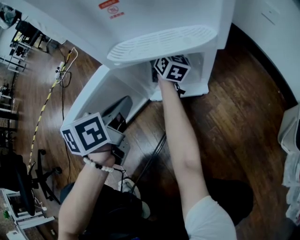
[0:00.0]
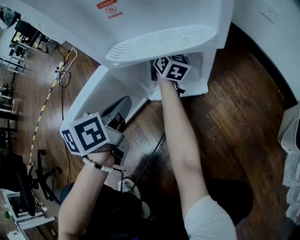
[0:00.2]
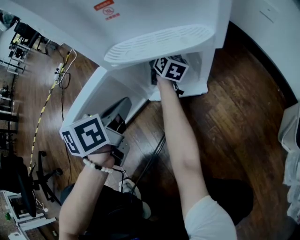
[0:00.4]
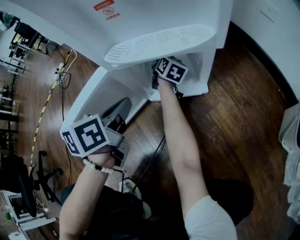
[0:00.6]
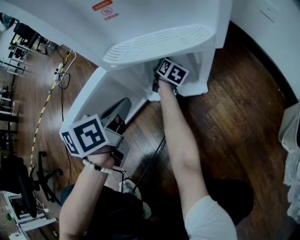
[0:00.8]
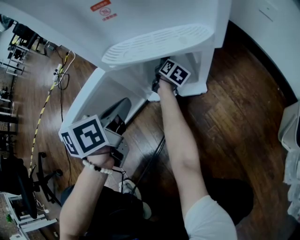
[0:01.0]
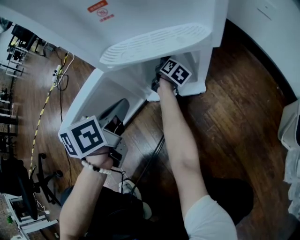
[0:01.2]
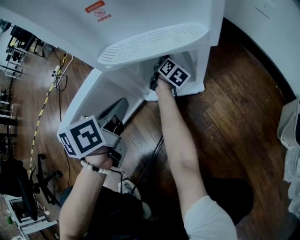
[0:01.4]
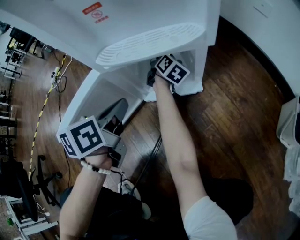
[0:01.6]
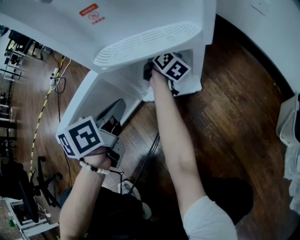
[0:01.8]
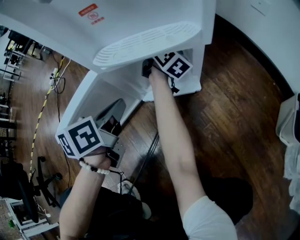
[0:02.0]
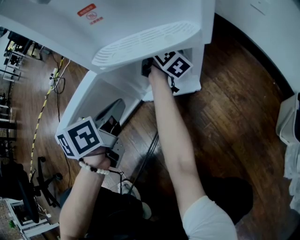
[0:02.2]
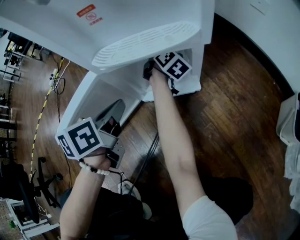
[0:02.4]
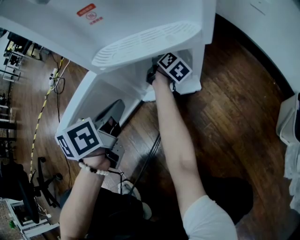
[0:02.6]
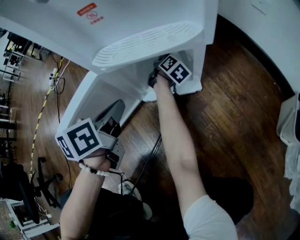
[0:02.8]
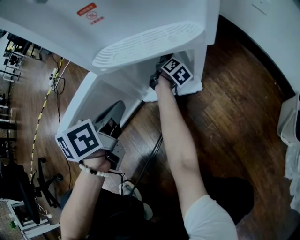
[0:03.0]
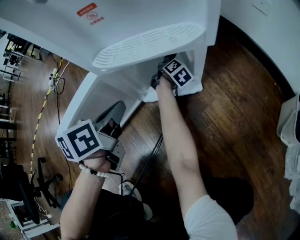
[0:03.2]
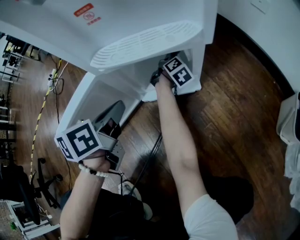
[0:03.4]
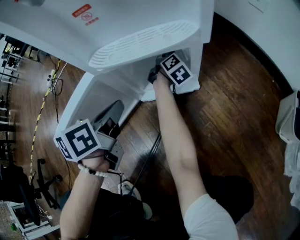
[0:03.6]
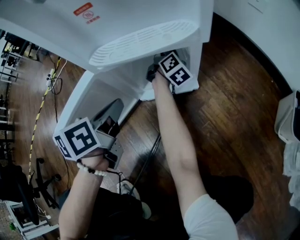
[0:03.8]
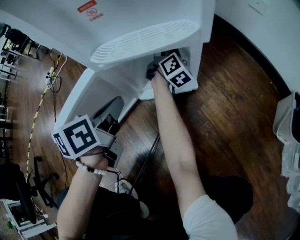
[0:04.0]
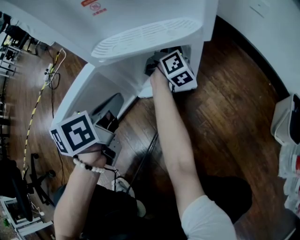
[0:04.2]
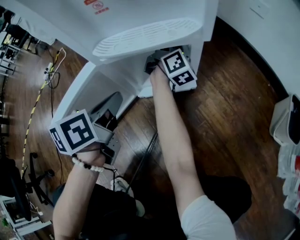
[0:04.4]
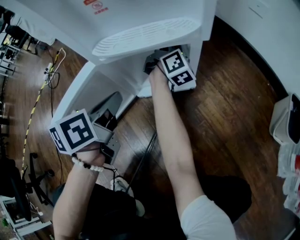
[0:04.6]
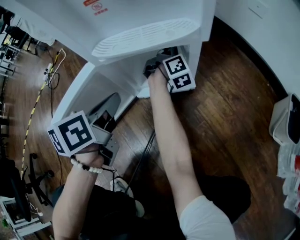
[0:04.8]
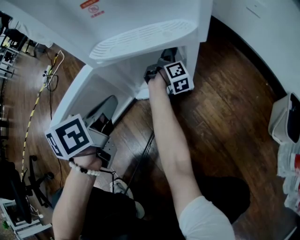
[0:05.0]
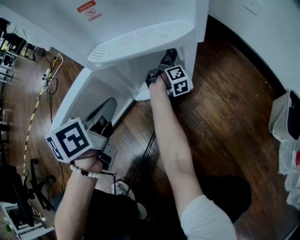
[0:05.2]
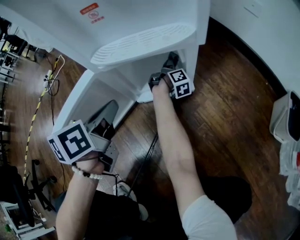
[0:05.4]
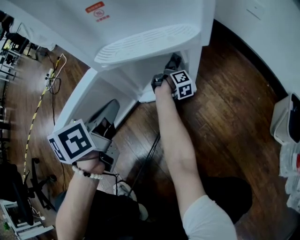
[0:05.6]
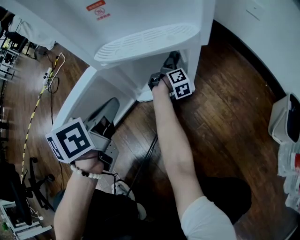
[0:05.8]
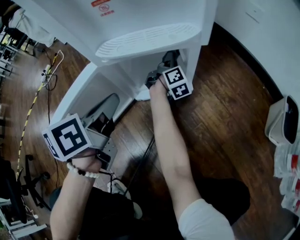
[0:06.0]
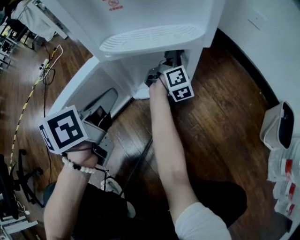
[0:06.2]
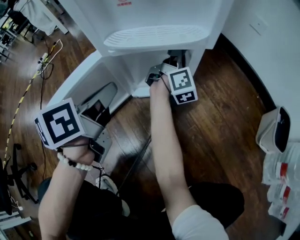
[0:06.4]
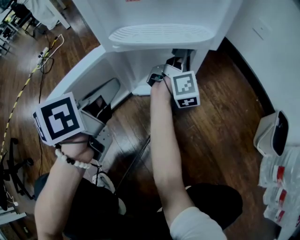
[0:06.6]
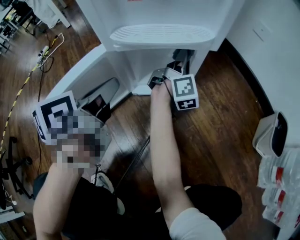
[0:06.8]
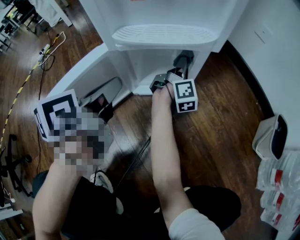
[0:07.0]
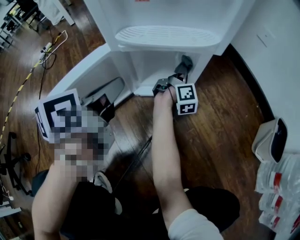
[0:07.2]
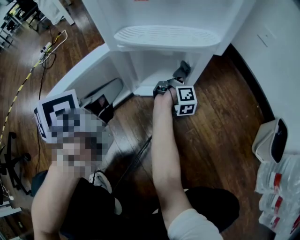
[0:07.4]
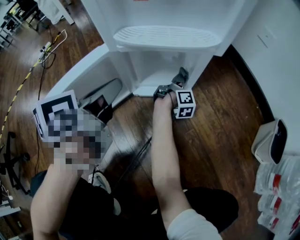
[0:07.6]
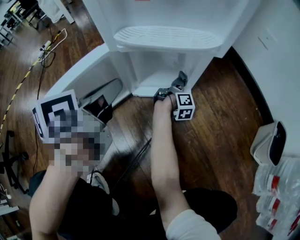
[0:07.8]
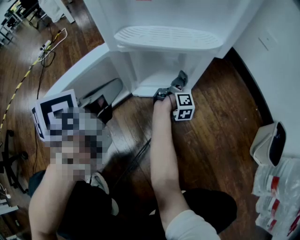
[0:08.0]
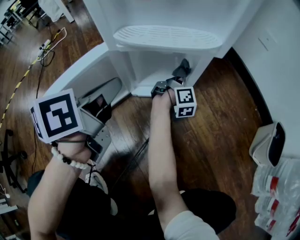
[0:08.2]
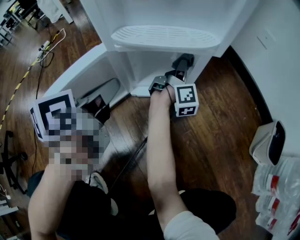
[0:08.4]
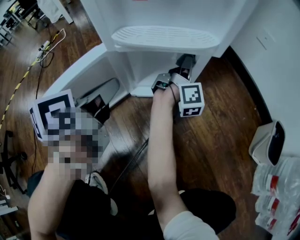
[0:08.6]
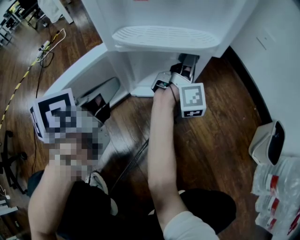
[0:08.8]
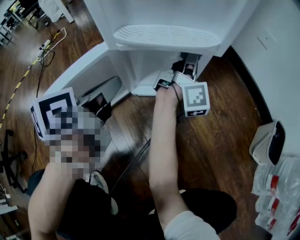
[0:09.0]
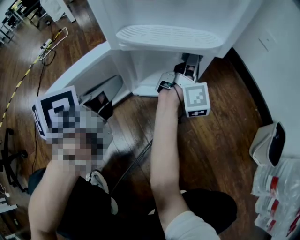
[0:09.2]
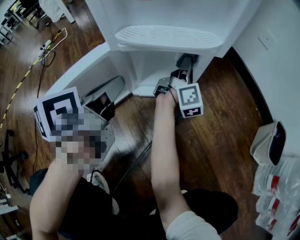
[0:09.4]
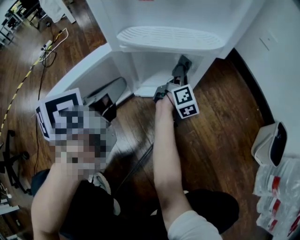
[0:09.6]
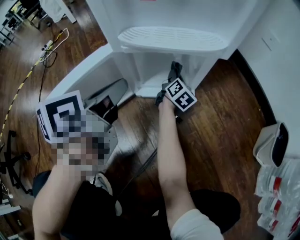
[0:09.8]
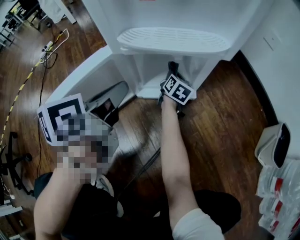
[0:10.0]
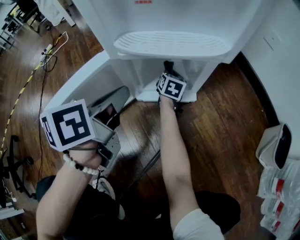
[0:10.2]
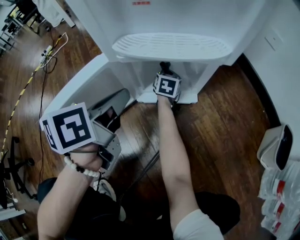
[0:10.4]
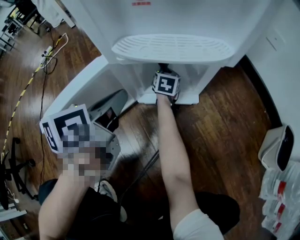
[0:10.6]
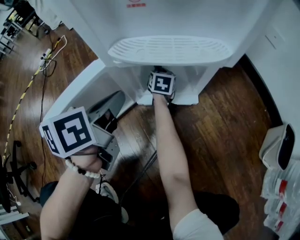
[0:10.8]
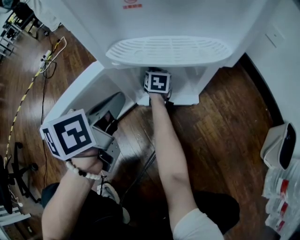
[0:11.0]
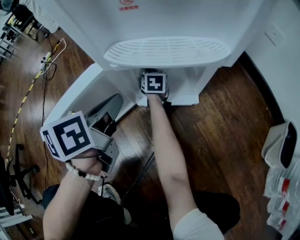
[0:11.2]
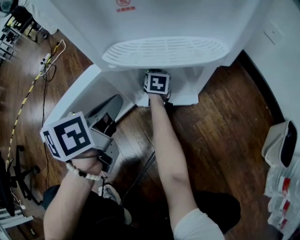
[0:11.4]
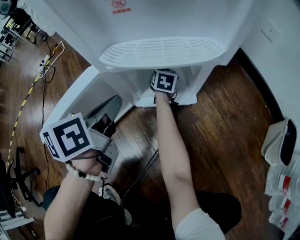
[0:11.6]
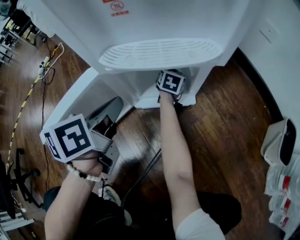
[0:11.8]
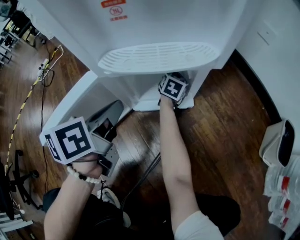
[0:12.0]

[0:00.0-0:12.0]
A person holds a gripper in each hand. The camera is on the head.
0:00.0 to 0:01.6: The right gripper moves downward, some 10 cm, and swivels roughly 20 degrees.
0:01.6 to 0:03.0: The right gripper goes some 10 cm downward.
0:03.0 to 0:04.4: The right gripper goes roughly 20 cm upward, and tips its fingers upward by some 30 degrees.
0:04.4 to 0:06.0: The right gripper travels downward by some 10 cm.
0:06.0 to 0:07.6: The right gripper shifts some 10 cm downward.
0:07.6 to 0:09.0: The right gripper shifts some 25 cm upward, and swivels about 30 degrees.
0:09.0 to 0:10.4: The right gripper travels downward and to the left by roughly 30 cm, and points its fingers about 50 degrees further downward.
0:10.4 to 0:12.0: The right gripper heads to the right, covering about 5 cm.

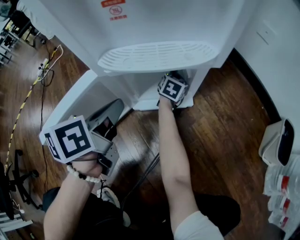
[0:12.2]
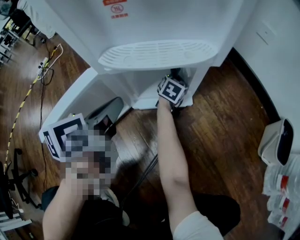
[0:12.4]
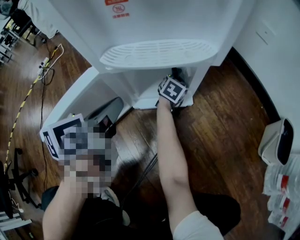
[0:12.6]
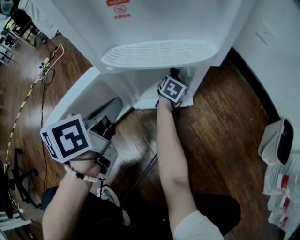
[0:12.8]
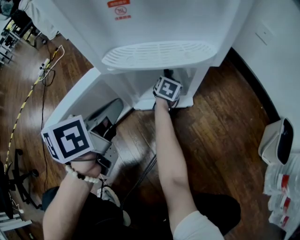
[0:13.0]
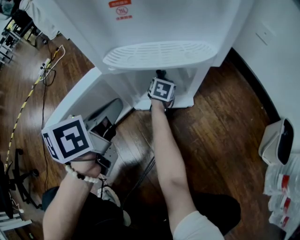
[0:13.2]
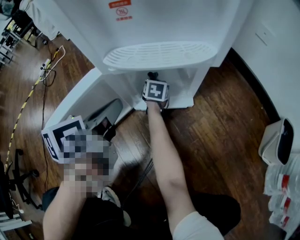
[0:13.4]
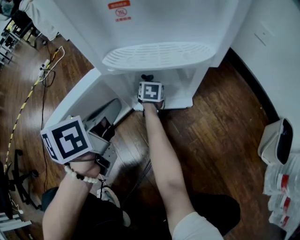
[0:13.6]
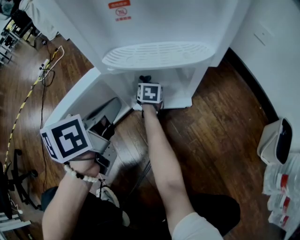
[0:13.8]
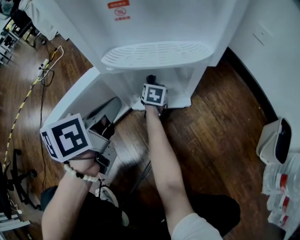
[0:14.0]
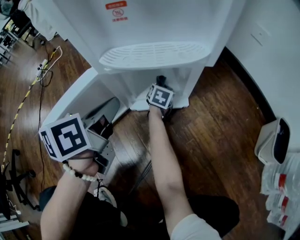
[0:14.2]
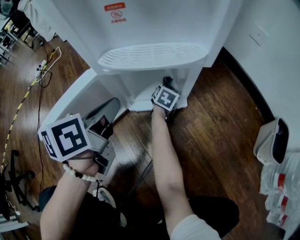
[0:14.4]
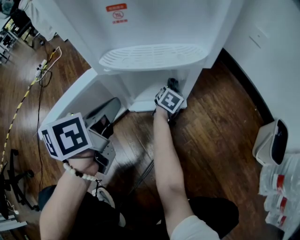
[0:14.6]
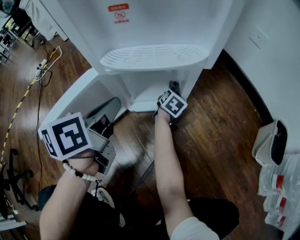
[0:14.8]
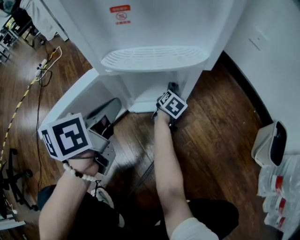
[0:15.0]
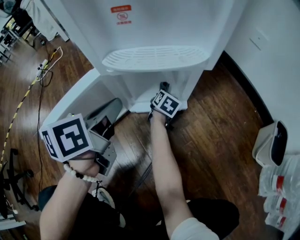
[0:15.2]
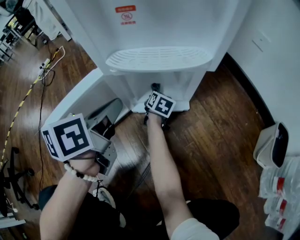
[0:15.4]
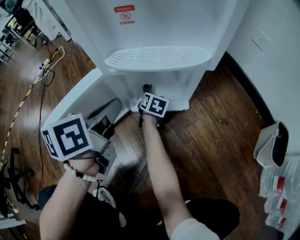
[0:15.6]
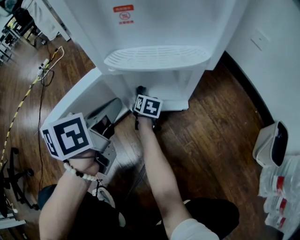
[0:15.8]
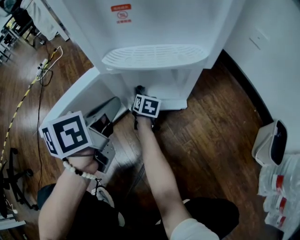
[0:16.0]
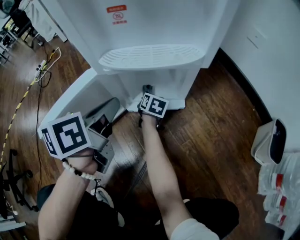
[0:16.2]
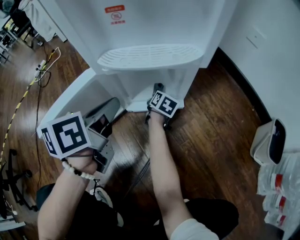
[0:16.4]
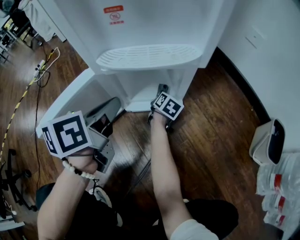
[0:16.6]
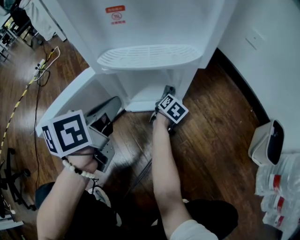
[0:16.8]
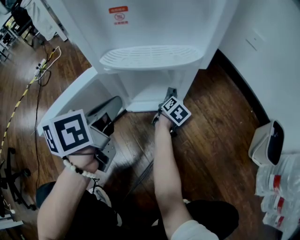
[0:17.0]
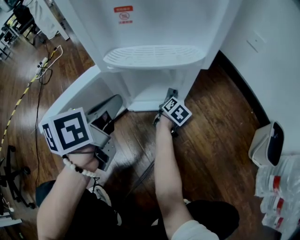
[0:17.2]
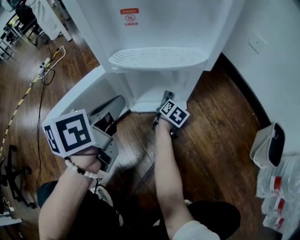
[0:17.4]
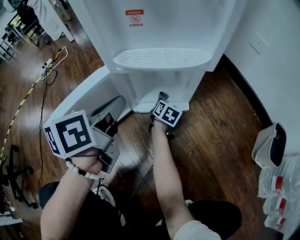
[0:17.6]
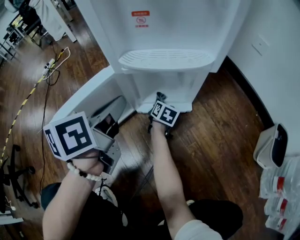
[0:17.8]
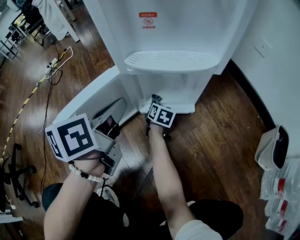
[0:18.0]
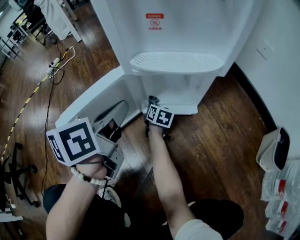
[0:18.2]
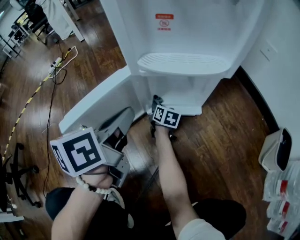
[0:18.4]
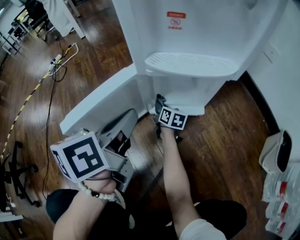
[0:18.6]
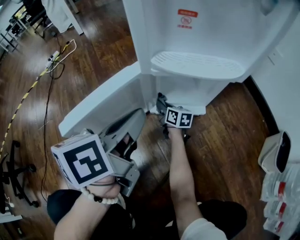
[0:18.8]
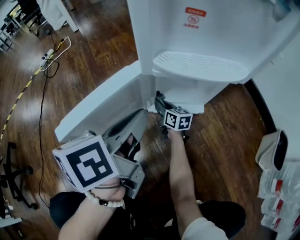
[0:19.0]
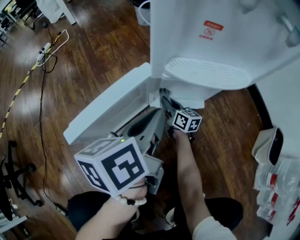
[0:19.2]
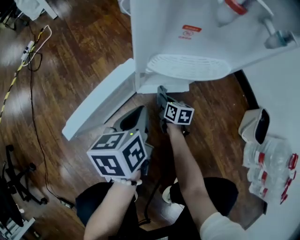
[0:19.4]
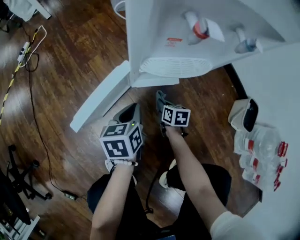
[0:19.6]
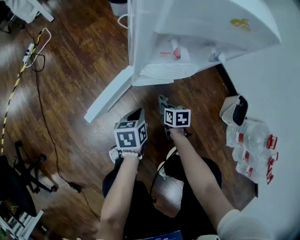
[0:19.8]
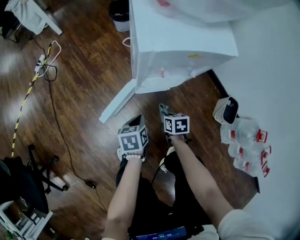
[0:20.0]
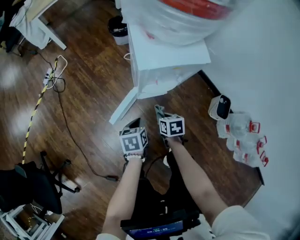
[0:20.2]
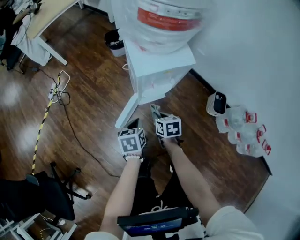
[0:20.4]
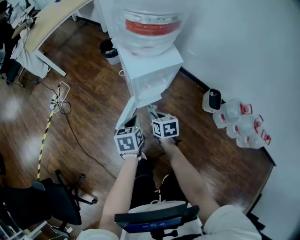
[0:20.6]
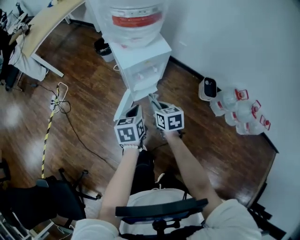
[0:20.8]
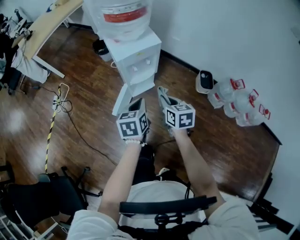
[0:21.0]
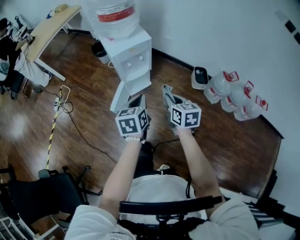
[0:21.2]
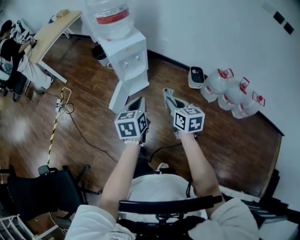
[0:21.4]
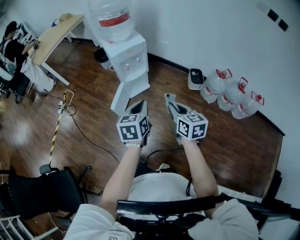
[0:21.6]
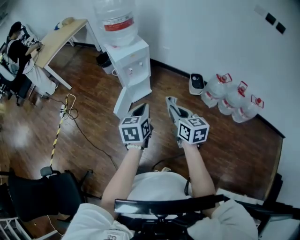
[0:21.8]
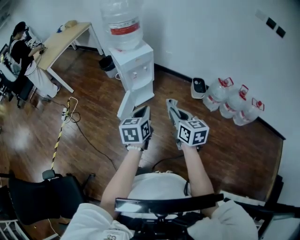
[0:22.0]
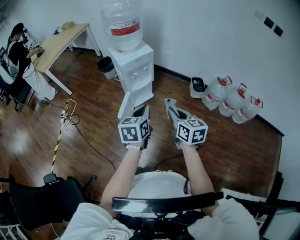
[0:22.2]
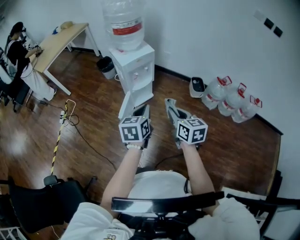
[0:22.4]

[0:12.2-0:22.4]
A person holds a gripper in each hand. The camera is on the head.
0:12.2 to 0:13.6: The right gripper heads to the left and backward, covering roughly 15 cm, and swivels roughly 30 degrees.
0:13.6 to 0:15.2: The right gripper travels to the right by approximately 10 cm, and turns by roughly 30 degrees.
0:15.2 to 0:16.6: The right gripper goes to the left and returns, some 10 cm each way.
0:16.6 to 0:18.0: The right gripper shifts some 10 cm to the left and backward, while the left gripper ends up some 5 cm from where it was.
0:18.0 to 0:19.4: The right gripper moves backward, approximately 5 cm.
0:19.4 to 0:21.0: Both grippers move upward, roughly 70 cm. The left gripper changes its angle by some 30 degrees, while the right gripper swivels approximately 20 degrees.
0:21.0 to 0:22.4: Both grippers travel together backward and upward, about 20 cm.

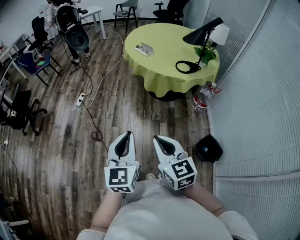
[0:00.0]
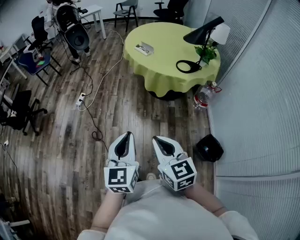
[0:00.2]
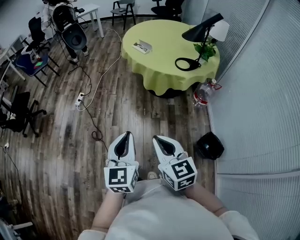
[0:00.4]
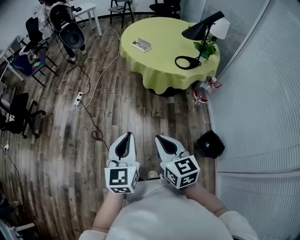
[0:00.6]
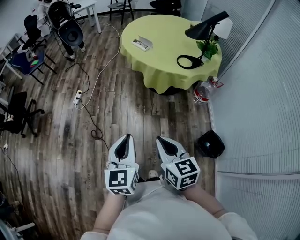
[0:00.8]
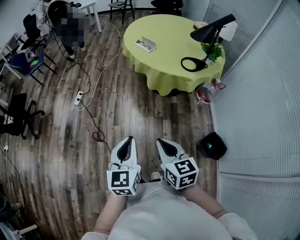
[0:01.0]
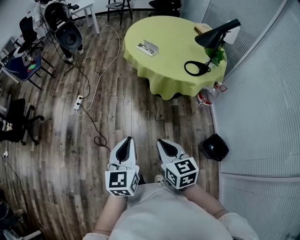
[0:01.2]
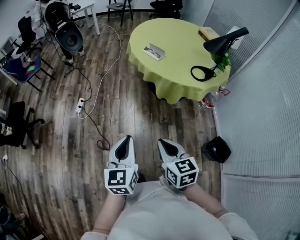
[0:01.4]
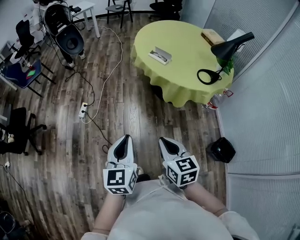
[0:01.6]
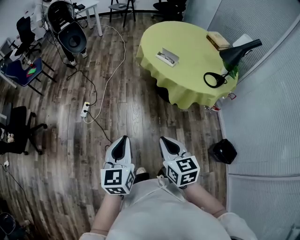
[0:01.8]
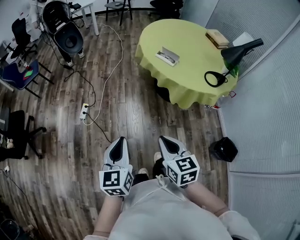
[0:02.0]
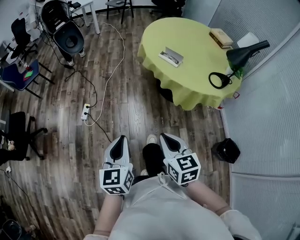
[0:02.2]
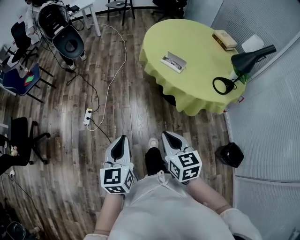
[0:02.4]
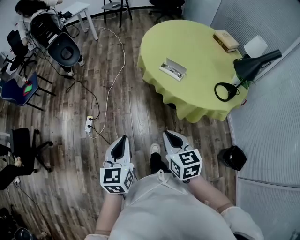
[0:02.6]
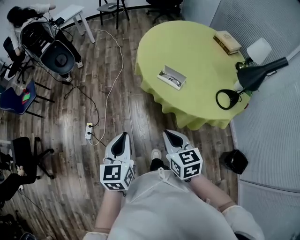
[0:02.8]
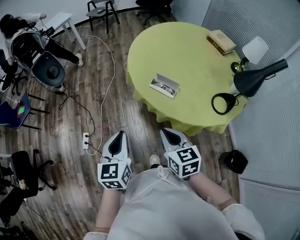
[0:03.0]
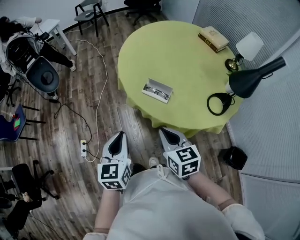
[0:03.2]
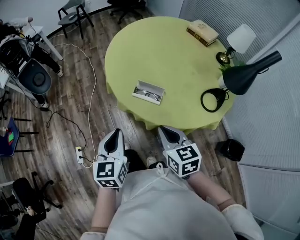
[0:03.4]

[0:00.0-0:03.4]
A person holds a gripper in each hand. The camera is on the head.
0:00.0 to 0:01.6: The two grippers go about 30 cm forward and to the left.
0:01.6 to 0:03.4: Both grippers are carried forward, approximately 50 cm. The left gripper changes its angle by approximately 20 degrees.
